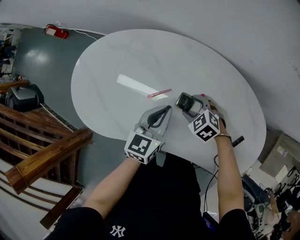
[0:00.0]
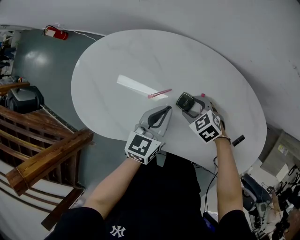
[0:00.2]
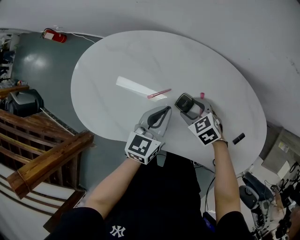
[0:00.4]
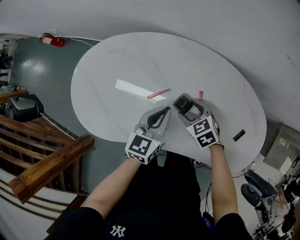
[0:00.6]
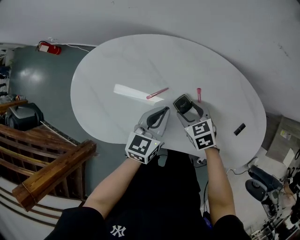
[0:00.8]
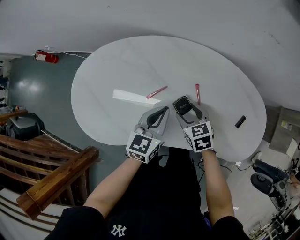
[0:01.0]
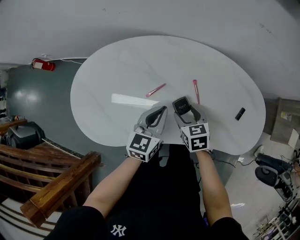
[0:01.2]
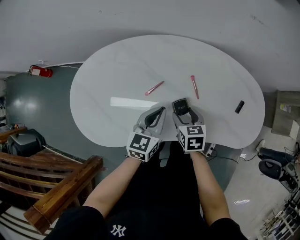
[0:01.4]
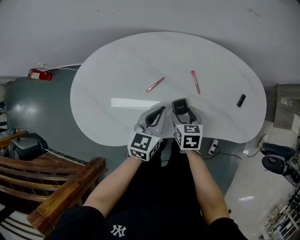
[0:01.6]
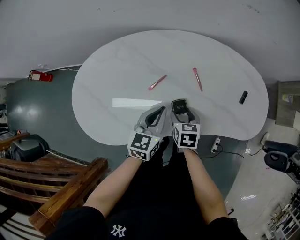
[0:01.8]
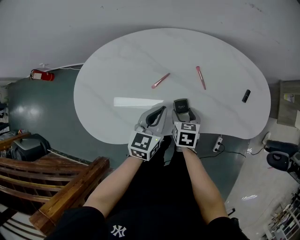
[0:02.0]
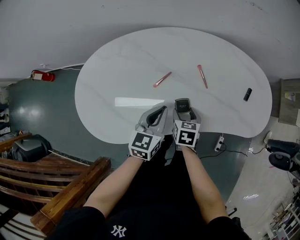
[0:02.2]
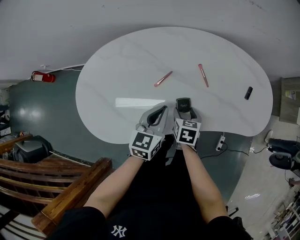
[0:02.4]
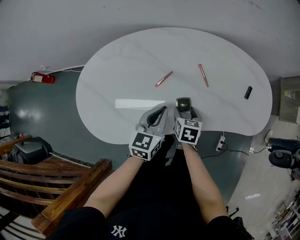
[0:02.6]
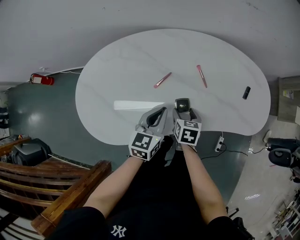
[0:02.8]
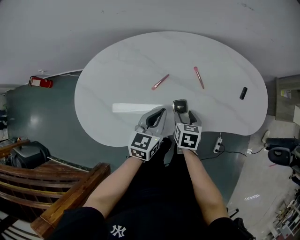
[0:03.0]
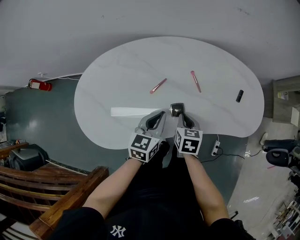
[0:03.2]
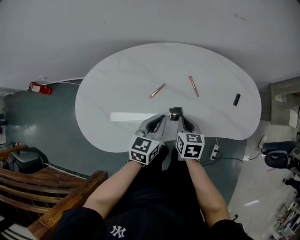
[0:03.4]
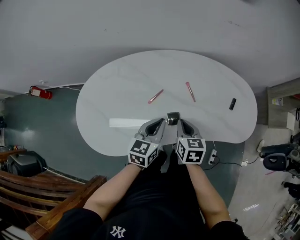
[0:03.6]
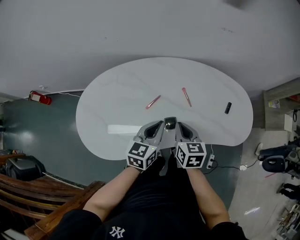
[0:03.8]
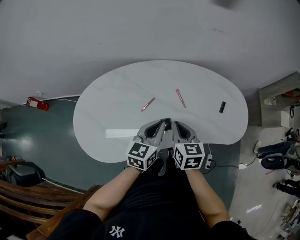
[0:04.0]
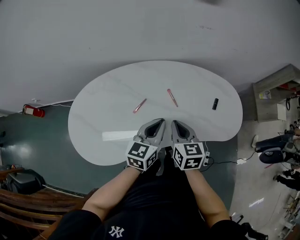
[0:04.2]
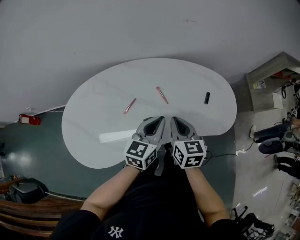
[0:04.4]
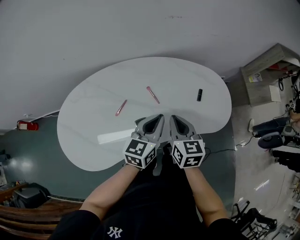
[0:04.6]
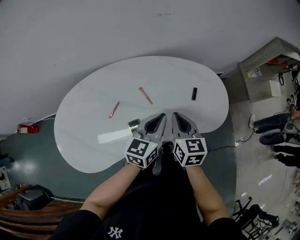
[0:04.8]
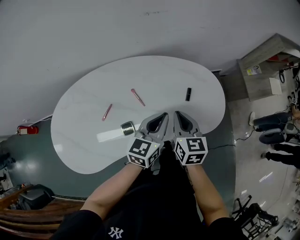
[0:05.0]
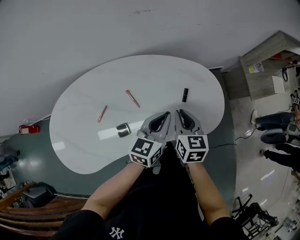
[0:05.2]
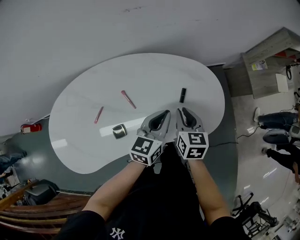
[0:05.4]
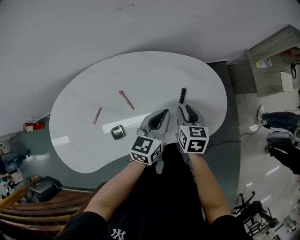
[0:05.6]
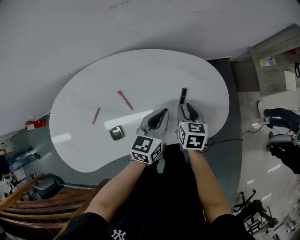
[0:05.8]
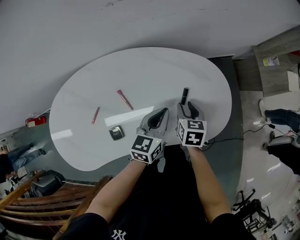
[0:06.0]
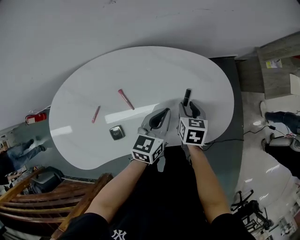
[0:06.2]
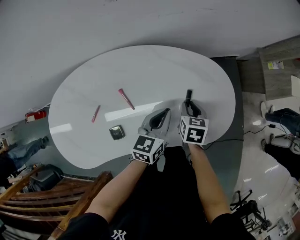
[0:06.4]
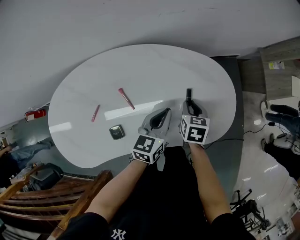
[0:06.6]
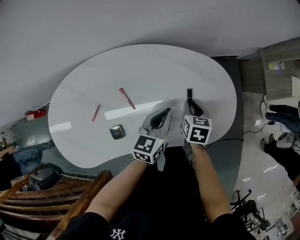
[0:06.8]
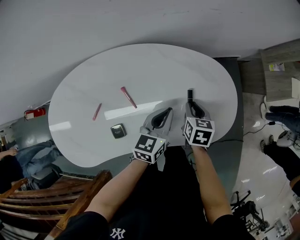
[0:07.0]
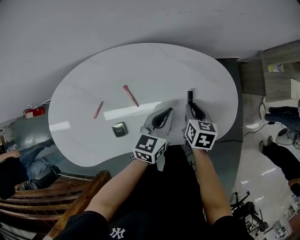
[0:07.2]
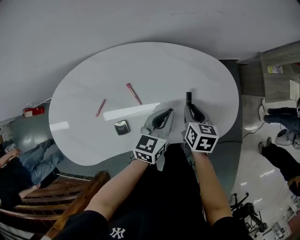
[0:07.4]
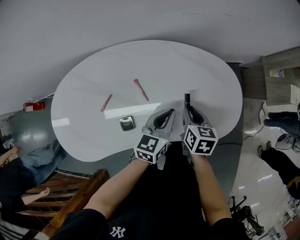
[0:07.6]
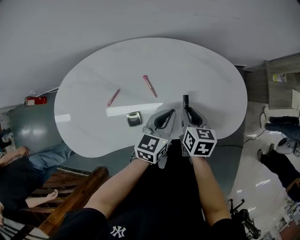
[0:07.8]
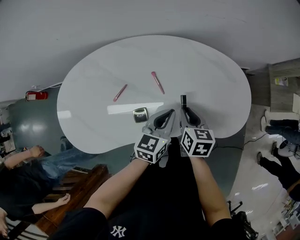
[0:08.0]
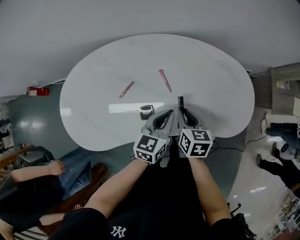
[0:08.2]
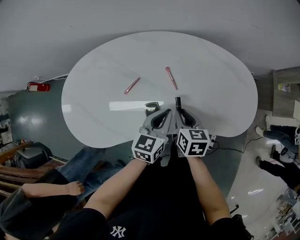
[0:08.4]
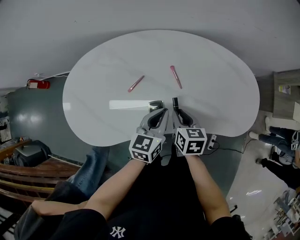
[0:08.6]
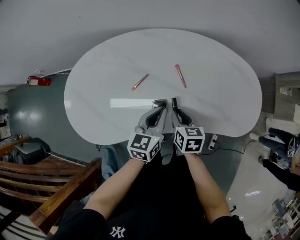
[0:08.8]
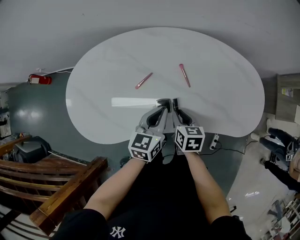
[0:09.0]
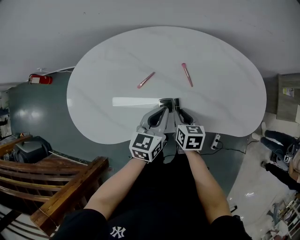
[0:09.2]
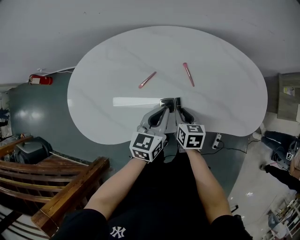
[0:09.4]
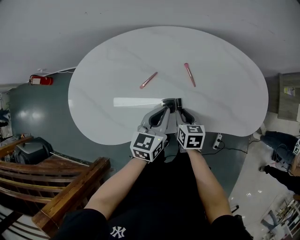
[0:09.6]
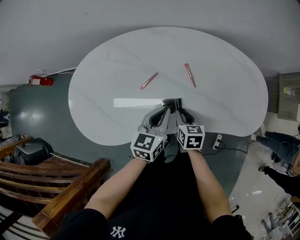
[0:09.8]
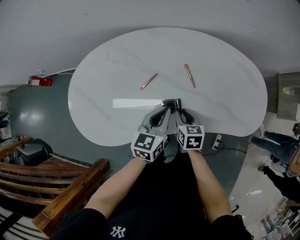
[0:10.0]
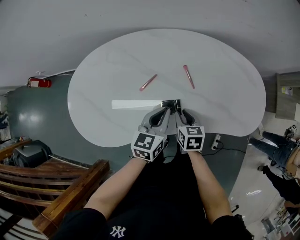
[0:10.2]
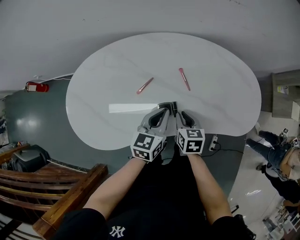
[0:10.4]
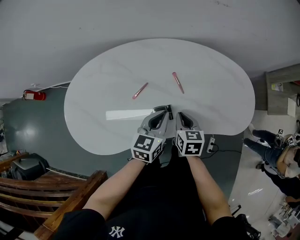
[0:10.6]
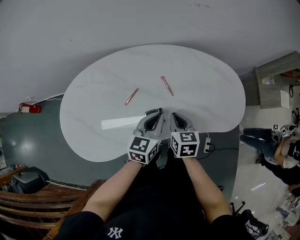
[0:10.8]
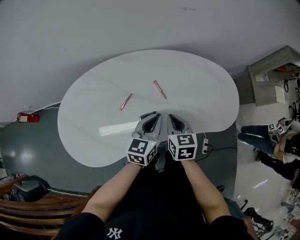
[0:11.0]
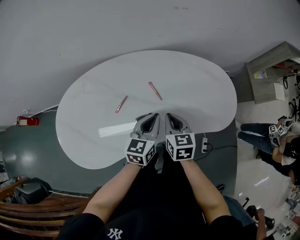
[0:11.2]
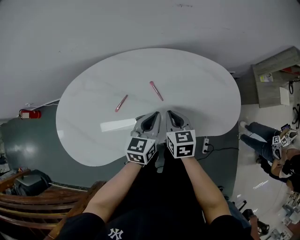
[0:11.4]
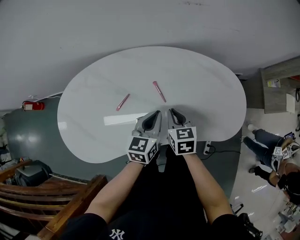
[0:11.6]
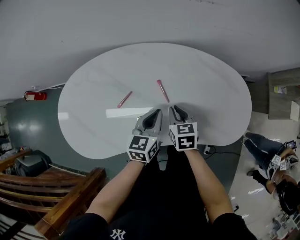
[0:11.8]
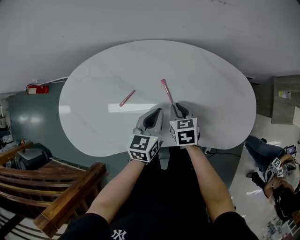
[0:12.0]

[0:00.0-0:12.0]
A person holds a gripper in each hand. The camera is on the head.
0:00.0 to 0:01.6: The right gripper shifts by approximately 10 cm, and rolls clockwise, seen from behind, by some 60 degrees; the left gripper ends up approximately 10 cm from where it was.
0:01.6 to 0:03.0: The grippers make only small movements.
0:03.0 to 0:04.4: The right gripper shifts roughly 20 cm upward and to the right, changes its angle by about 20 degrees, and closes, while the left gripper is displaced to the right and upward by approximately 15 cm.
0:04.4 to 0:06.0: The left gripper travels to the right, forward and downward by some 25 cm. The right gripper is displaced to the right, downward and forward by about 35 cm, turns by approximately 20 degrees, and opens its fingers.
0:06.0 to 0:07.6: The right gripper moves to the left, some 5 cm, while the left gripper shifts by some 5 cm.
0:07.6 to 0:09.0: Both grippers travel together to the left, about 20 cm.
0:09.0 to 0:10.4: There are only small adjustments of the grippers.
0:10.4 to 0:12.0: The left gripper travels forward and to the right by approximately 10 cm, while the right gripper is displaced forward by some 10 cm, and goes upward and returns, about 10 cm each way.

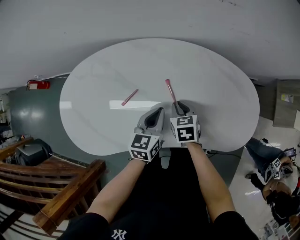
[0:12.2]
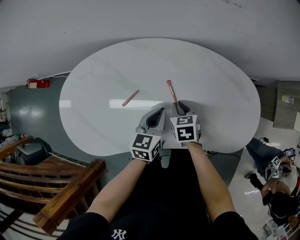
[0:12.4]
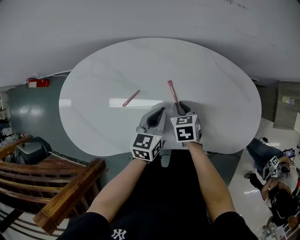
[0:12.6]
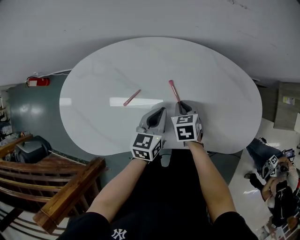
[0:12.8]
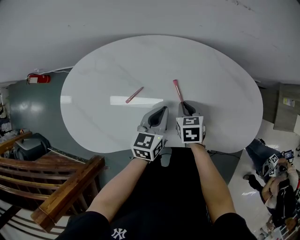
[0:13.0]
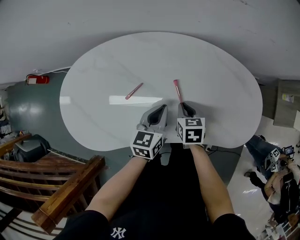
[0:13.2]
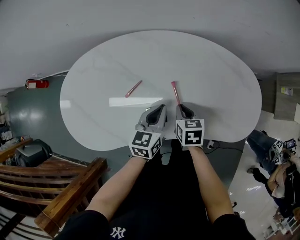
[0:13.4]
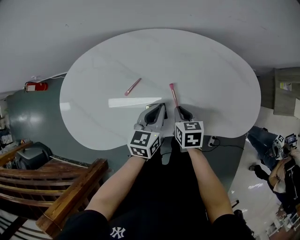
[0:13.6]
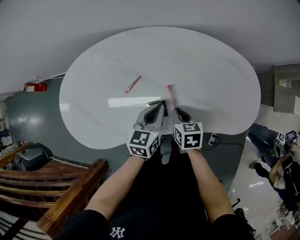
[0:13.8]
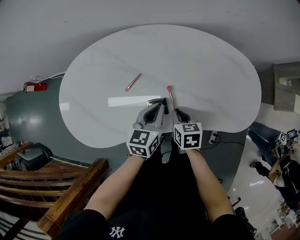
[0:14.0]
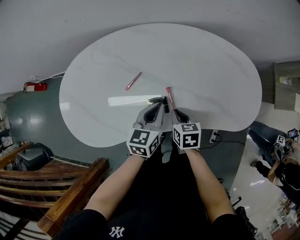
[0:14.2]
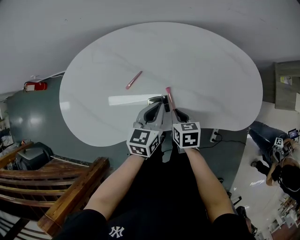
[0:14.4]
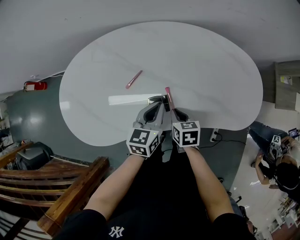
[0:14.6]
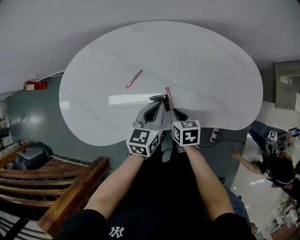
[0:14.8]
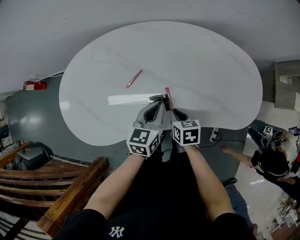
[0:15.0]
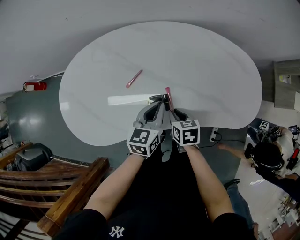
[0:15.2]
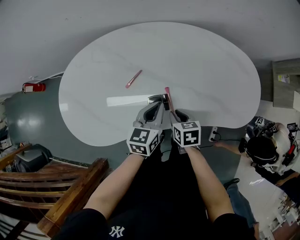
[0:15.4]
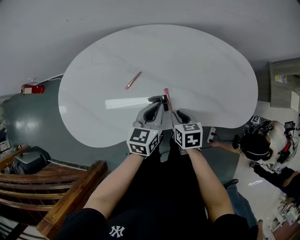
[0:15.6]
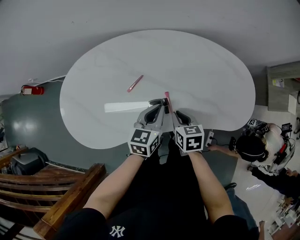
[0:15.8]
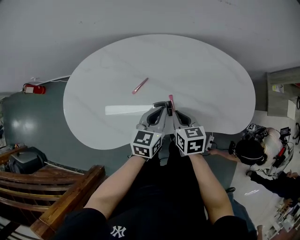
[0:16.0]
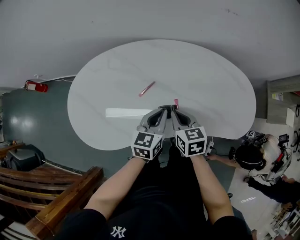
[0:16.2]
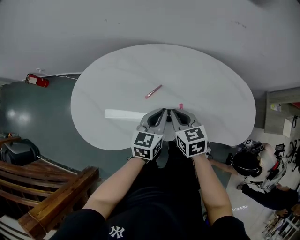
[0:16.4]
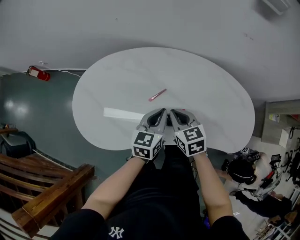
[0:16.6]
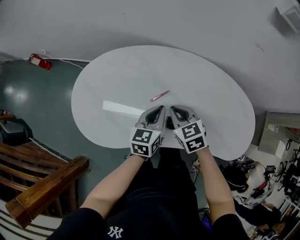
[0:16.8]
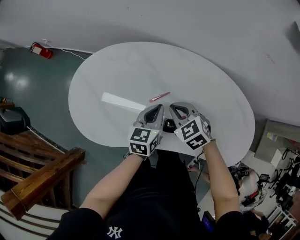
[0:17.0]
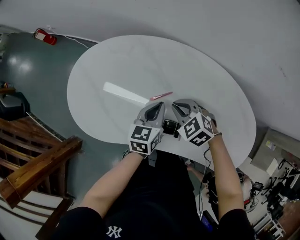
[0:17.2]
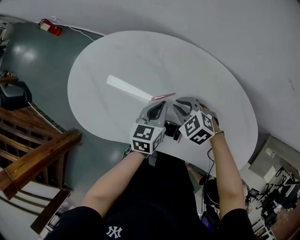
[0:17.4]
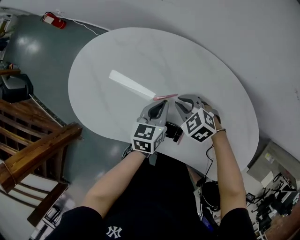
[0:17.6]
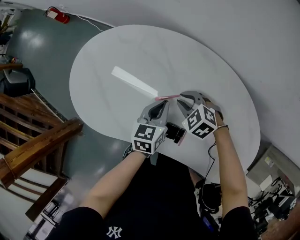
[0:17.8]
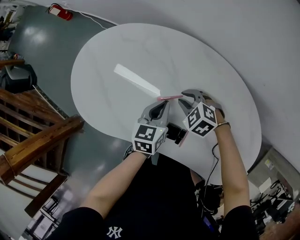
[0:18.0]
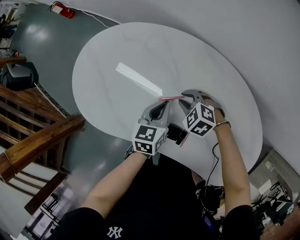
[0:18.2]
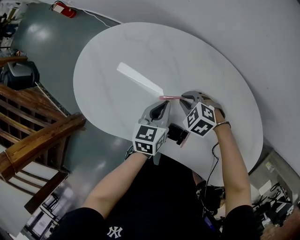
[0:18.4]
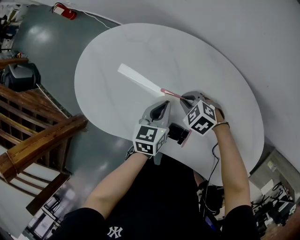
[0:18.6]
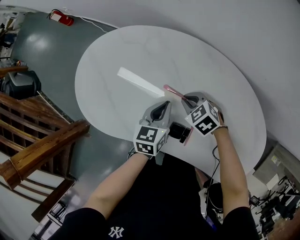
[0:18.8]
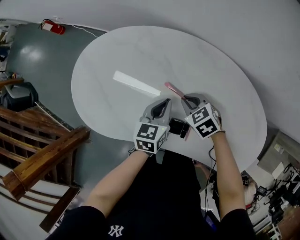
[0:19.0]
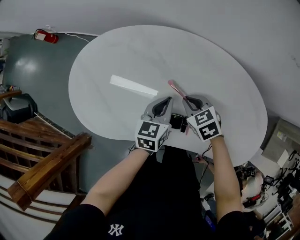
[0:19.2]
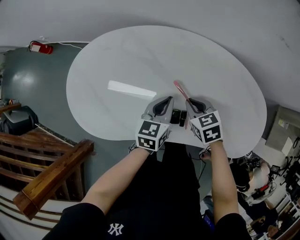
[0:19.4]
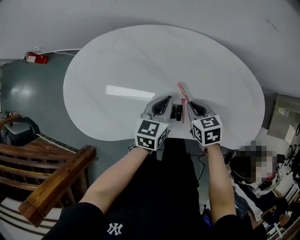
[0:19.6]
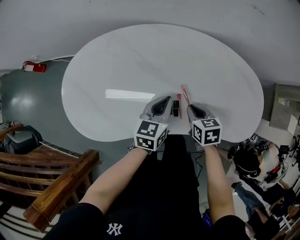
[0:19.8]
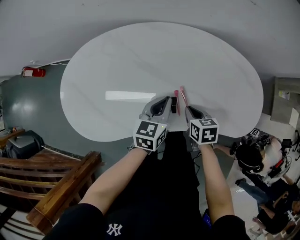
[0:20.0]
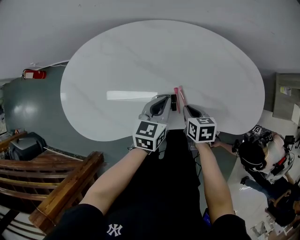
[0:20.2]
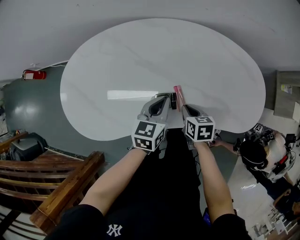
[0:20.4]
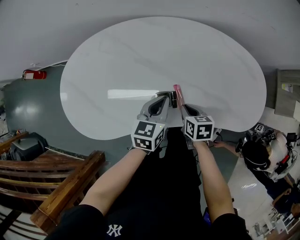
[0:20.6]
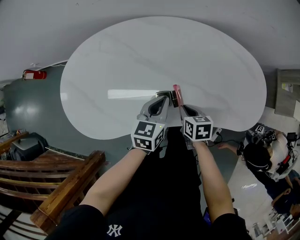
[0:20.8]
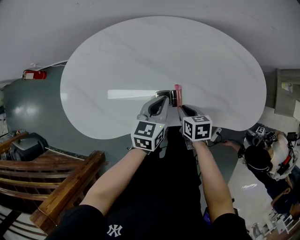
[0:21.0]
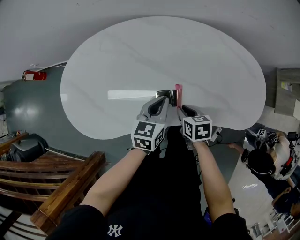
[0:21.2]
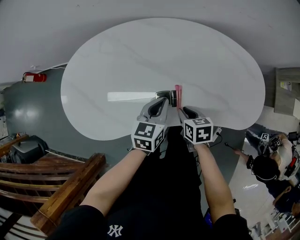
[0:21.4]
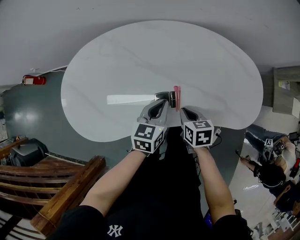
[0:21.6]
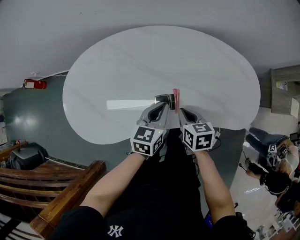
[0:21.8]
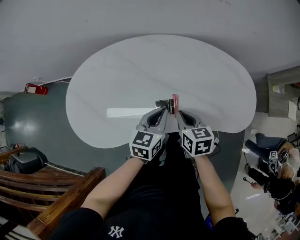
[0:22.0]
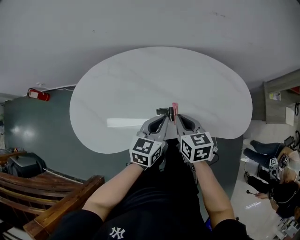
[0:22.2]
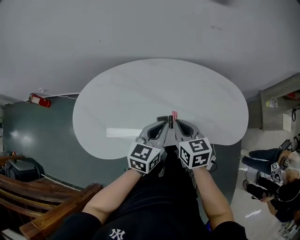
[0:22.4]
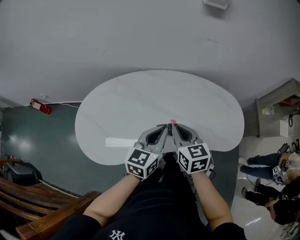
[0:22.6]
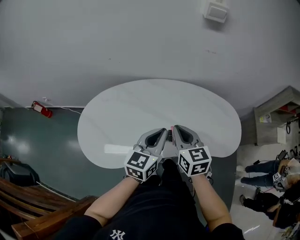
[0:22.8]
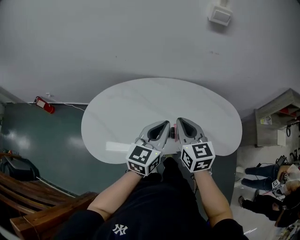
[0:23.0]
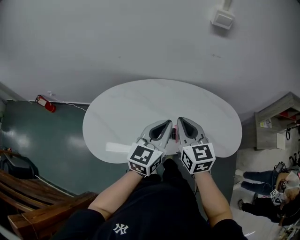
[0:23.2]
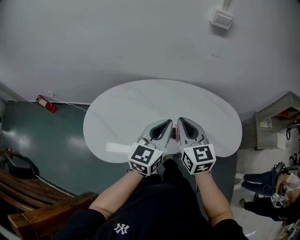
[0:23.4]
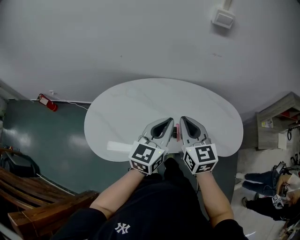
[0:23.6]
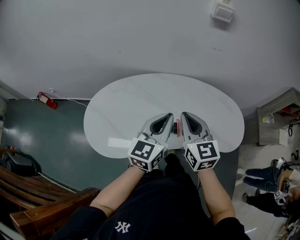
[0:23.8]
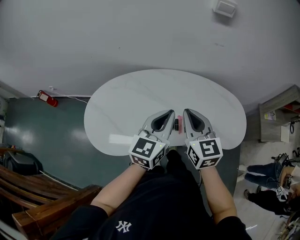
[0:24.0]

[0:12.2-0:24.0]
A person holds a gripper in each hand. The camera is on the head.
0:12.2 to 0:13.6: The right gripper travels backward by some 10 cm.
0:13.6 to 0:15.2: The right gripper goes about 5 cm backward.
0:15.2 to 0:16.6: The left gripper heads to the left and upward, covering roughly 10 cm; the right gripper goes about 20 cm upward, to the left and forward, and rotates approximately 30 degrees.
0:16.6 to 0:18.2: The two grippers go approximately 10 cm downward. The right gripper twists about 50 degrees counterclockwise, seen from behind. The left gripper swivels about 30 degrees.
0:18.2 to 0:19.6: The left gripper ends up roughly 10 cm from where it was, and changes its angle by some 30 degrees, while the right gripper shifts by roughly 15 cm, and rotates around the line of its fingers by approximately 60 degrees, clockwise from behind.
0:19.6 to 0:21.0: The right gripper moves backward and downward, approximately 10 cm, and turns by roughly 20 degrees, while the left gripper is displaced backward by some 5 cm.
0:21.0 to 0:22.6: The grippers both shift upward by approximately 20 cm. The right gripper changes its angle by roughly 30 degrees.
0:22.6 to 0:24.0: The grippers both shift upward by approximately 10 cm.
